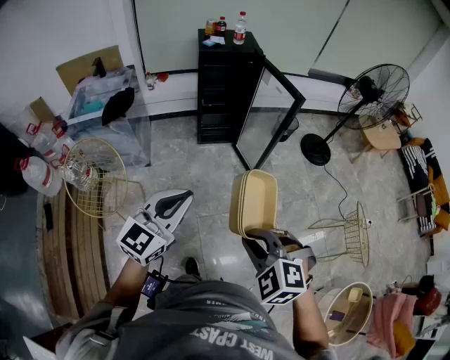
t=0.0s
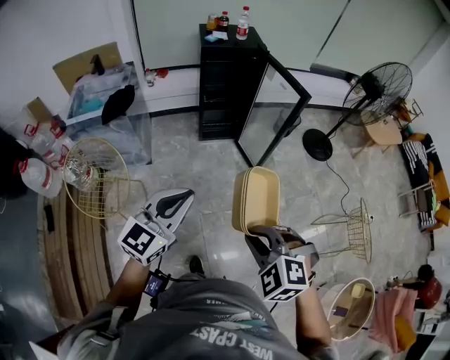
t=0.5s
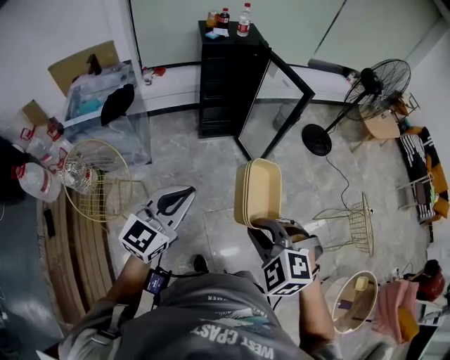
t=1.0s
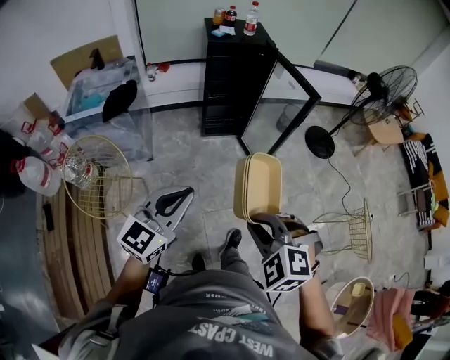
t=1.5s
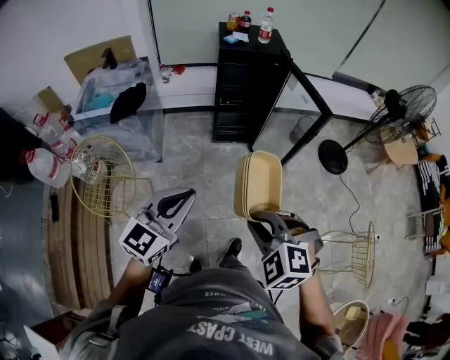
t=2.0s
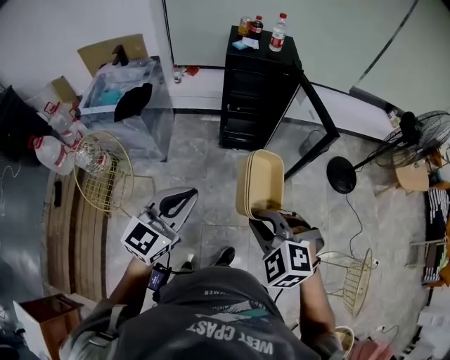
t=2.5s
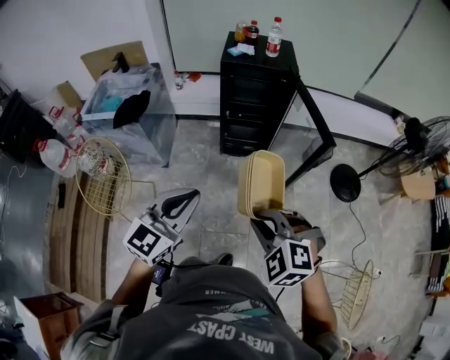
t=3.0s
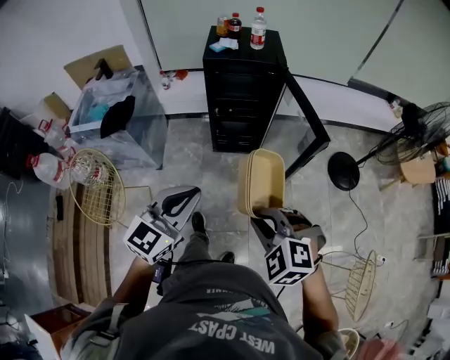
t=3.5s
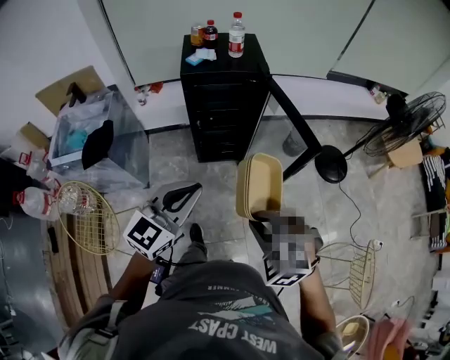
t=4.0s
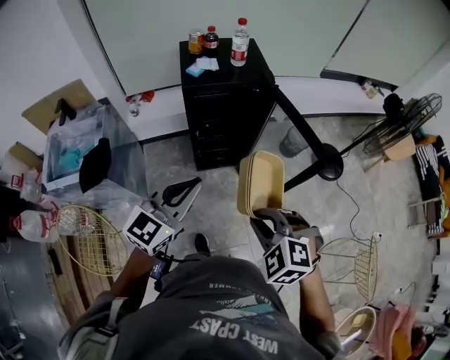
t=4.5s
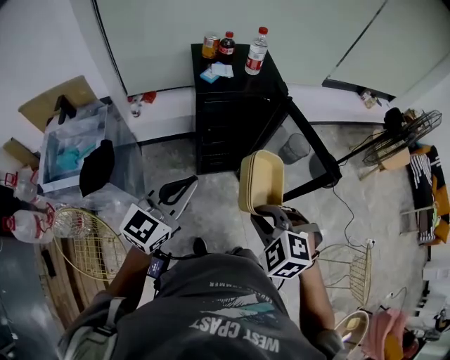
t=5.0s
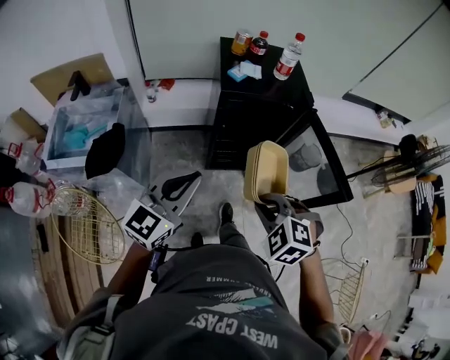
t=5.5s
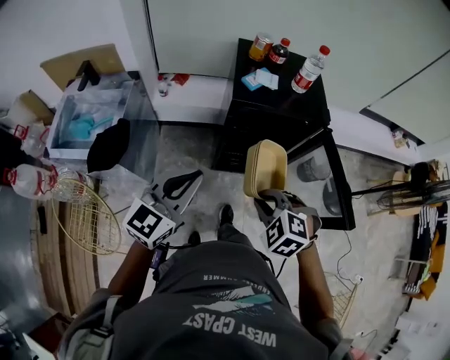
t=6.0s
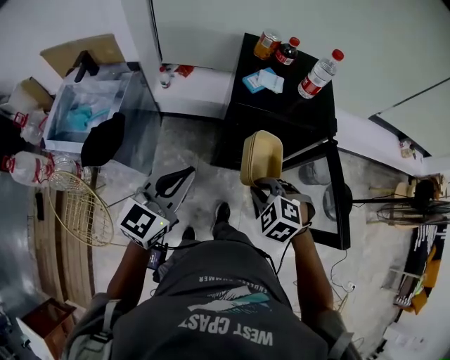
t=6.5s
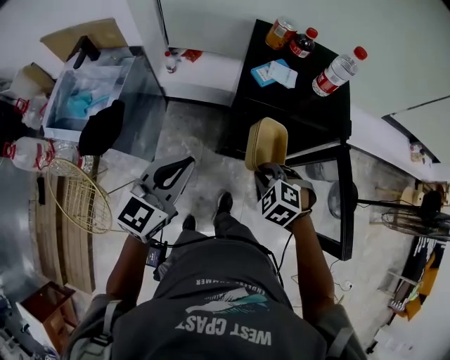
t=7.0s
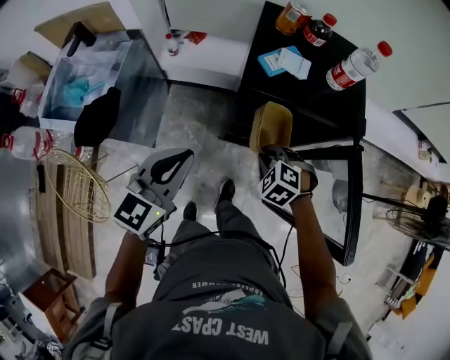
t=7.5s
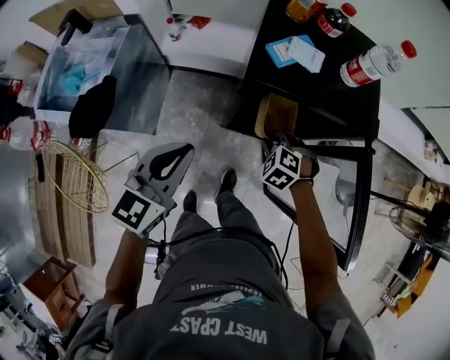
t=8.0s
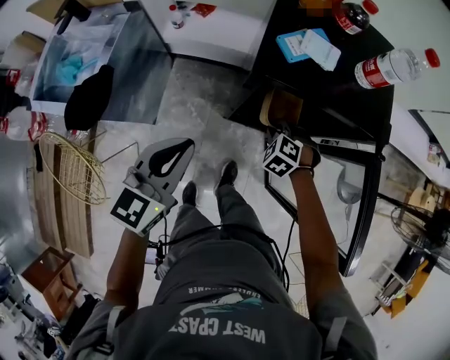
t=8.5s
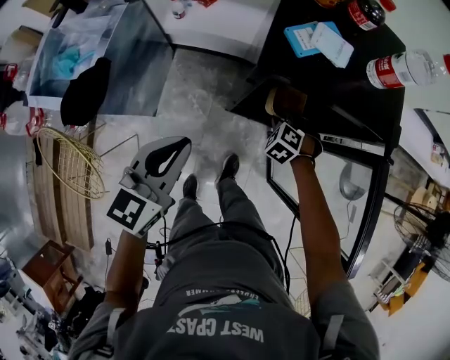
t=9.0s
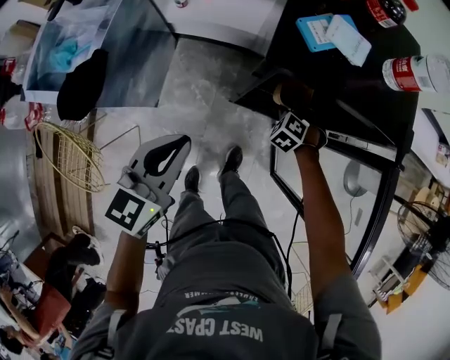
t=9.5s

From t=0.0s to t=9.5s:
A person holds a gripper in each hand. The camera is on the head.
From t=0.0s to t=2.0s: The right gripper moves forward, roughly 15 cm. The left gripper is displaced forward by approximately 10 cm.
From t=2.0s to t=4.0s: Both grippers move forward and to the right, approximately 25 cm.
From t=4.0s to t=5.5s: The right gripper is displaced forward and to the left by approximately 20 cm; the left gripper heads to the left and forward, covering roughly 20 cm.
From t=5.5s to t=7.5s: The left gripper moves forward and downward, about 15 cm, and changes its angle by approximately 20 degrees, while the right gripper moves forward and downward, roughly 30 cm.
From t=7.5s to t=9.5s: The left gripper heads downward, covering some 10 cm; the right gripper heads downward and forward, covering approximately 20 cm.

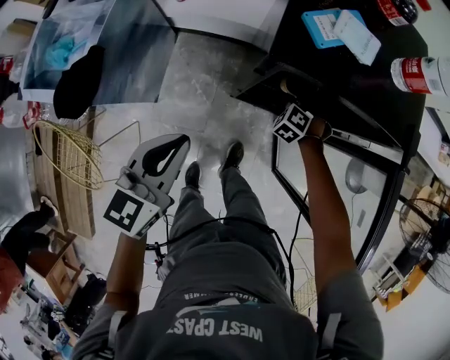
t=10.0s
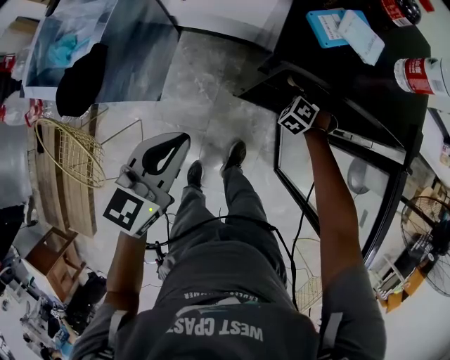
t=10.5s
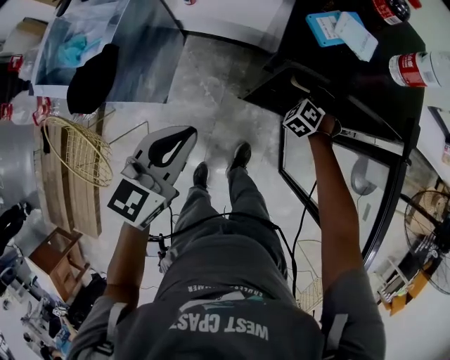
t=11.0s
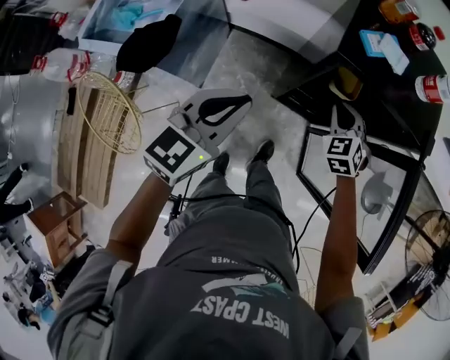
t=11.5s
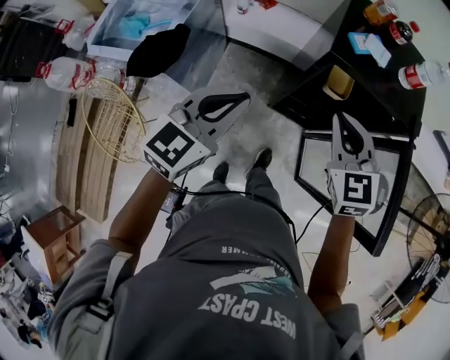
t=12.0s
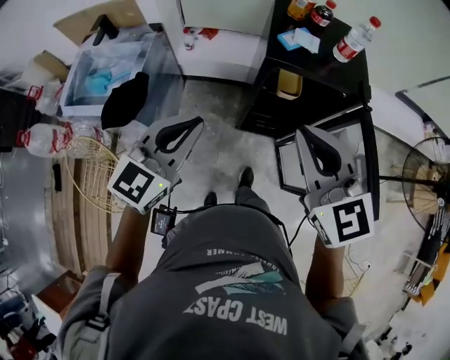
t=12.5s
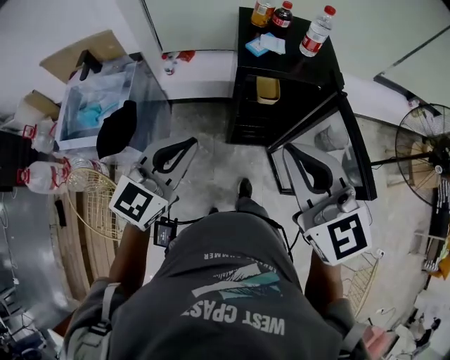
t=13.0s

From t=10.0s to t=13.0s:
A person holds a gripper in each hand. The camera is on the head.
From t=10.0s to t=11.5s: The right gripper moves upward, roughly 20 cm, rotates roughly 30 degrees, and opens, then closes once more; the left gripper heads upward, covering about 5 cm.
From t=11.5s to t=13.0s: The right gripper moves upward and backward, roughly 40 cm, and tips its fingers upward by some 30 degrees. The left gripper travels upward and backward by about 15 cm, and turns by approximately 20 degrees.

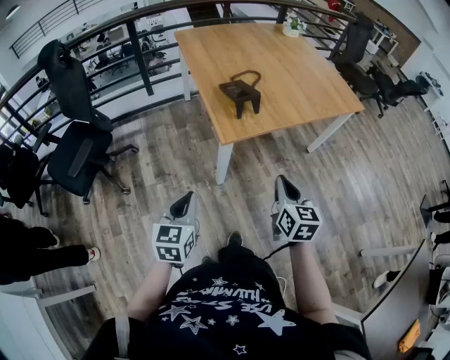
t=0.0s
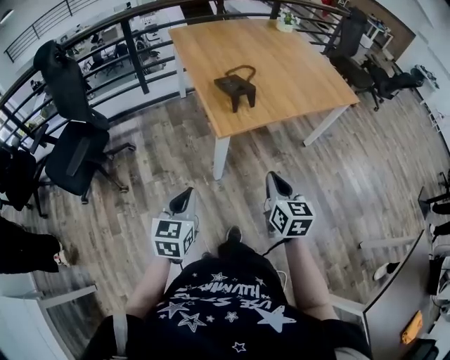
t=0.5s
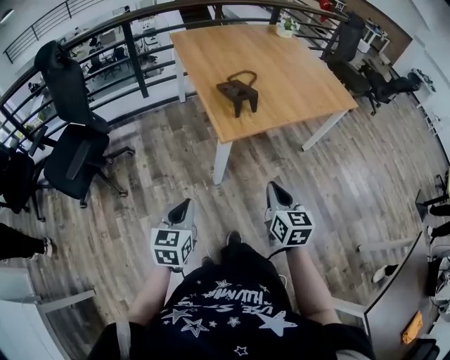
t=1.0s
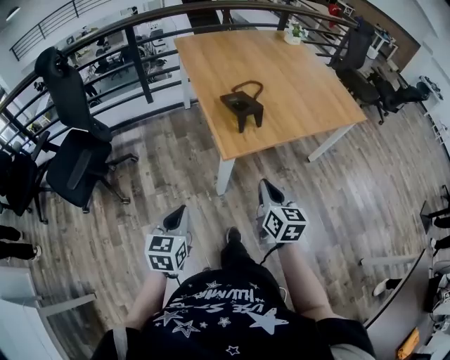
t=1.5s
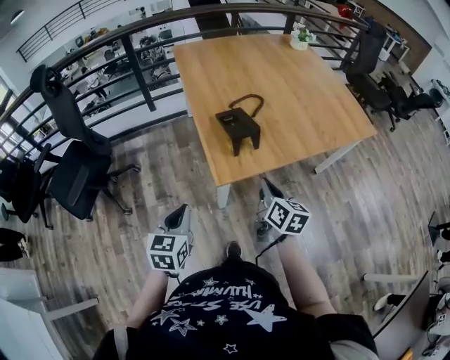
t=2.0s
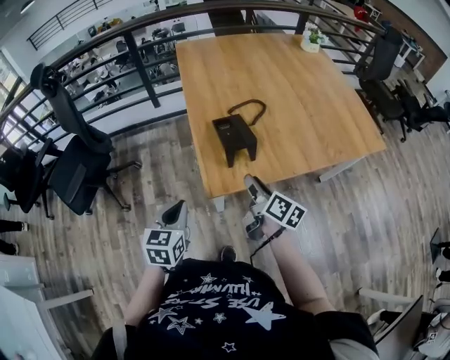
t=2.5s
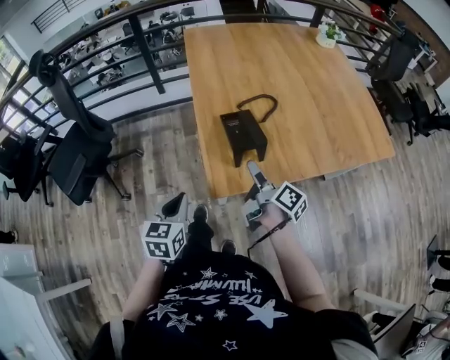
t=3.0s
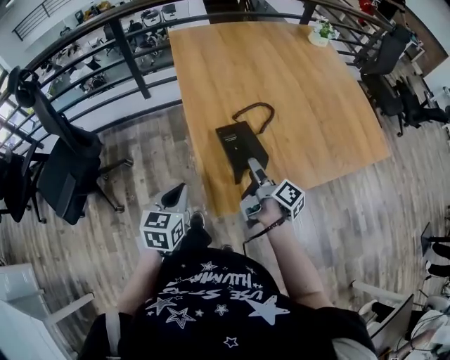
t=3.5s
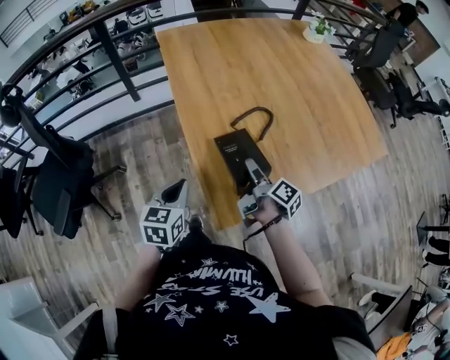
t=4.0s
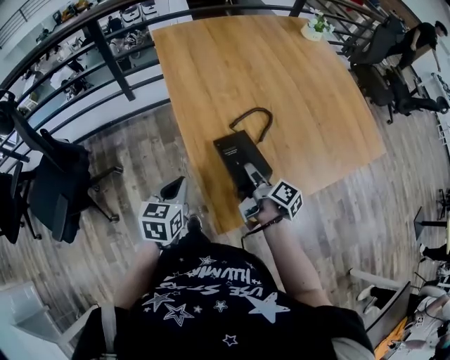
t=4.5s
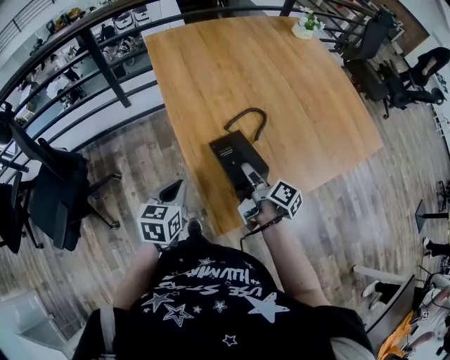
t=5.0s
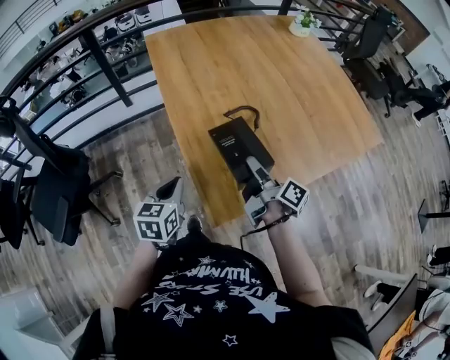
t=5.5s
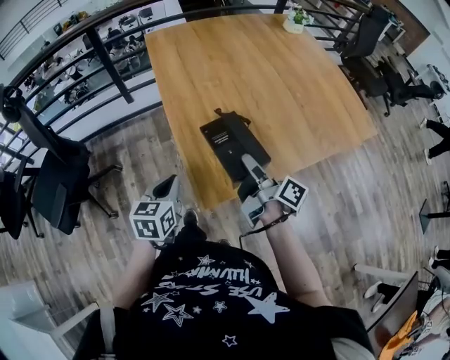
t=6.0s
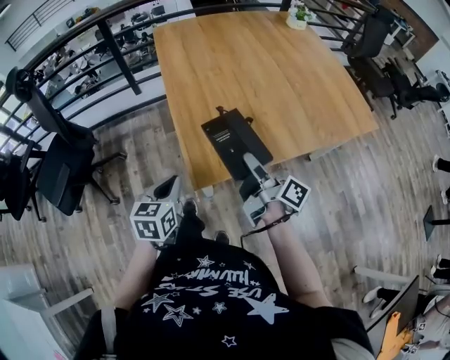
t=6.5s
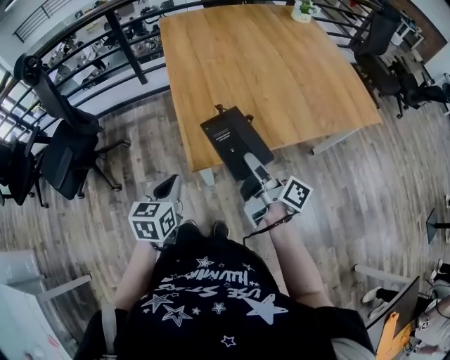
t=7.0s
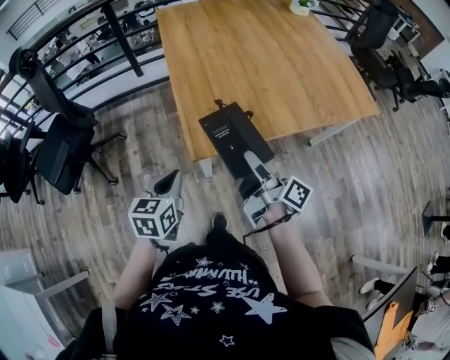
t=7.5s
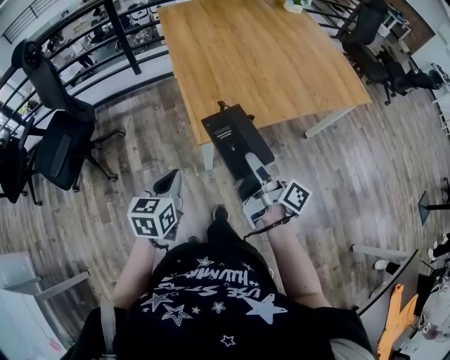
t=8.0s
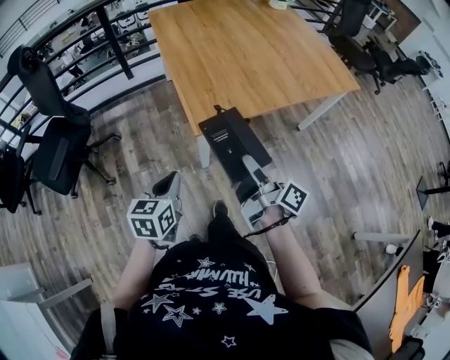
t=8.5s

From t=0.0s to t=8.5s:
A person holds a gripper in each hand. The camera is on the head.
From t=0.0s to t=2.0s: The two grippers go approximately 15 cm forward. The right gripper swivels about 20 degrees.
From t=2.0s to t=4.0s: Both grippers move forward, some 25 cm. The right gripper twists about 50 degrees clockwise, seen from behind, and opens.
From t=4.0s to t=6.5s: The left gripper shifts some 15 cm backward and to the right. Meanwhile the right gripper heads backward, upward and to the right, covering roughly 20 cm, turns by some 20 degrees, and closes.
From t=6.5s to t=8.5s: The grippers both shift backward by some 20 cm.

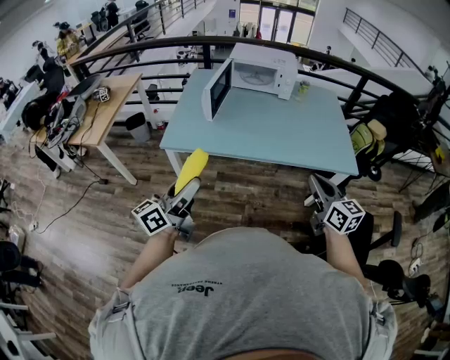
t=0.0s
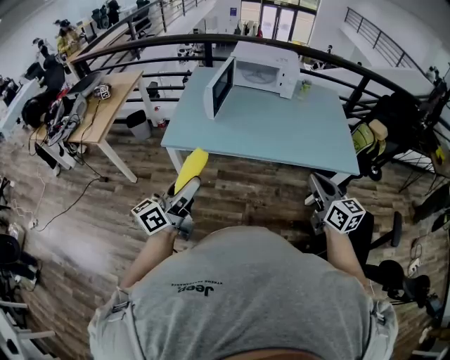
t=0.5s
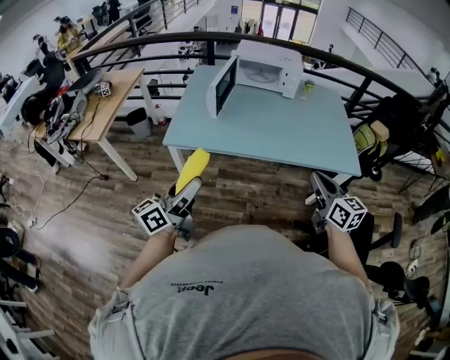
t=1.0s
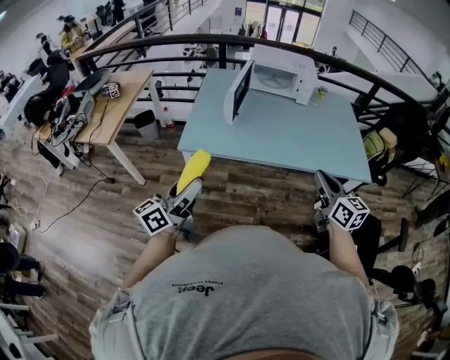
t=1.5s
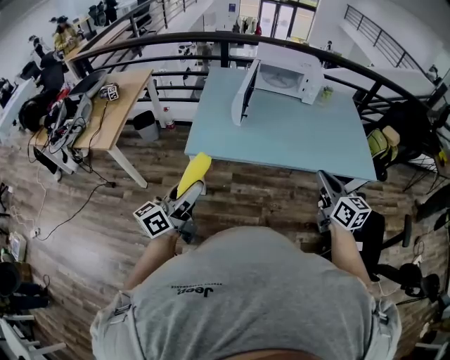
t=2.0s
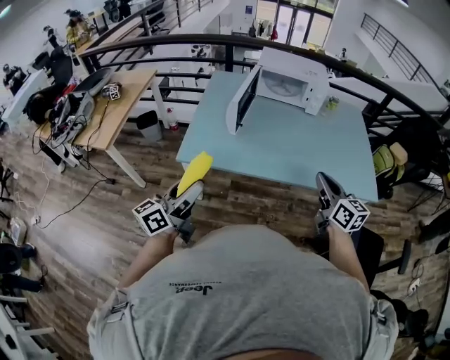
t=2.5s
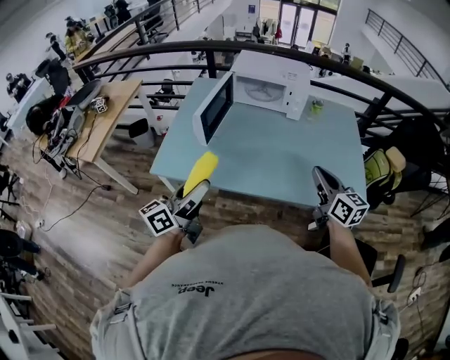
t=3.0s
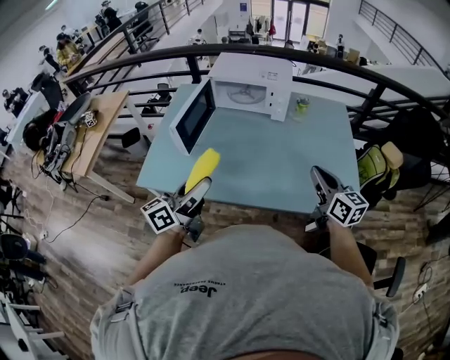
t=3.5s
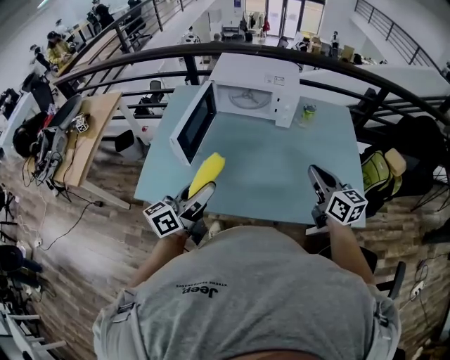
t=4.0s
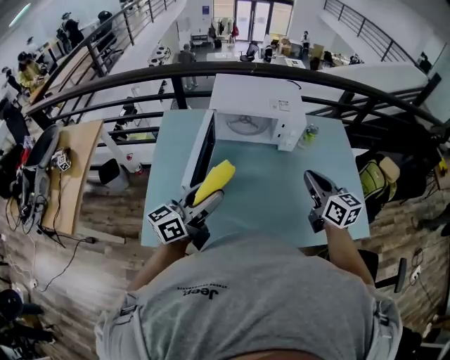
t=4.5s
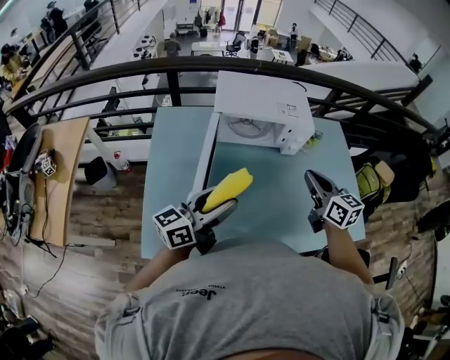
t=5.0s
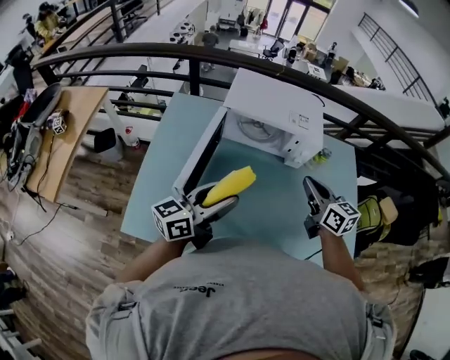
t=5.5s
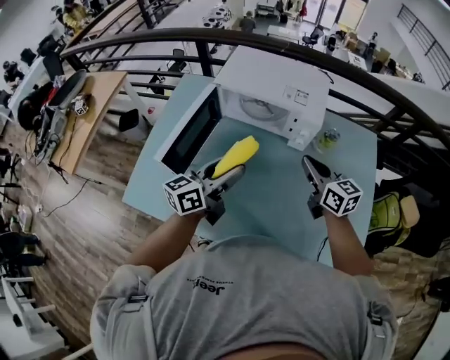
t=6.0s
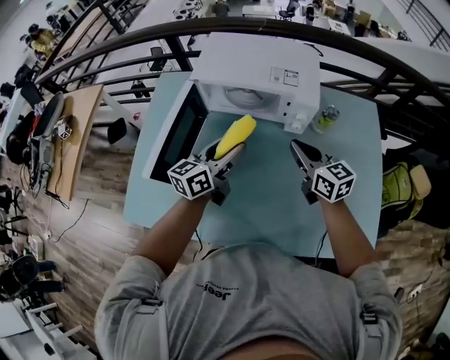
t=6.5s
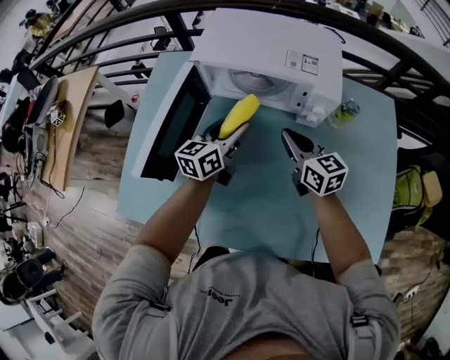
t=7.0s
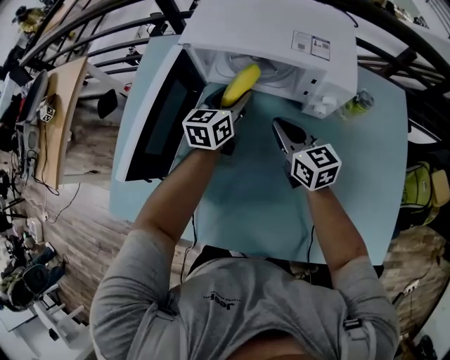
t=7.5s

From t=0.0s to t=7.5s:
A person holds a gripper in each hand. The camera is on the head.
From t=0.0s to t=2.0s: Both grippers travel together to the left, roughly 15 cm.
From t=2.0s to t=4.0s: Both grippers travel together forward and to the right, some 40 cm.
From t=4.0s to t=5.5s: The right gripper is displaced forward and to the left by about 25 cm. Meanwhile the left gripper shifts about 15 cm forward.
From t=5.5s to t=7.5s: The left gripper heads forward and downward, covering some 35 cm, and rotates approximately 40 degrees, while the right gripper travels downward and forward by some 25 cm.
